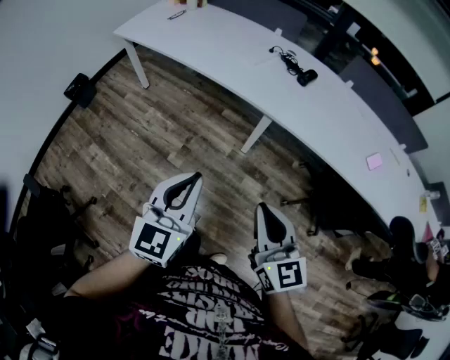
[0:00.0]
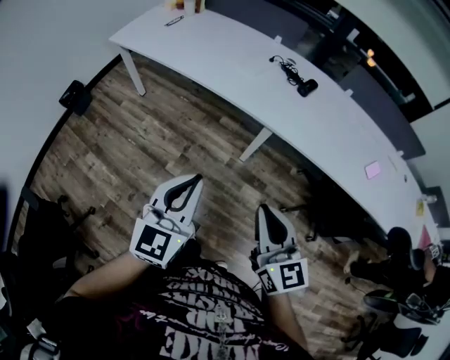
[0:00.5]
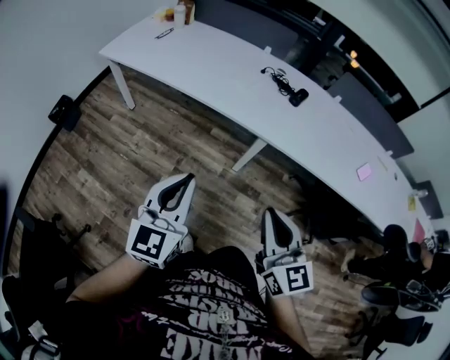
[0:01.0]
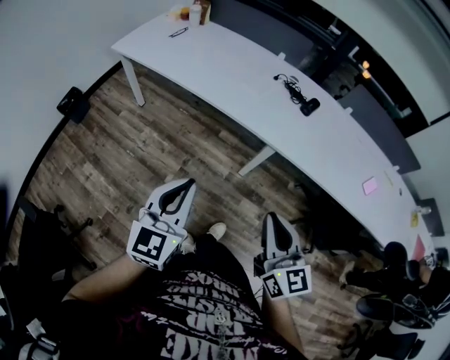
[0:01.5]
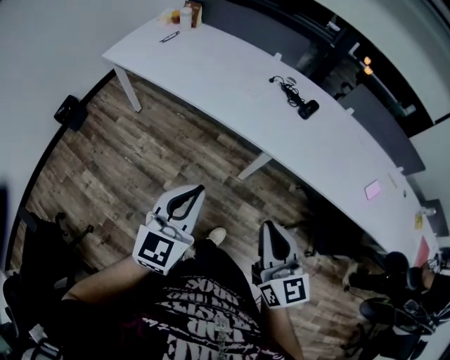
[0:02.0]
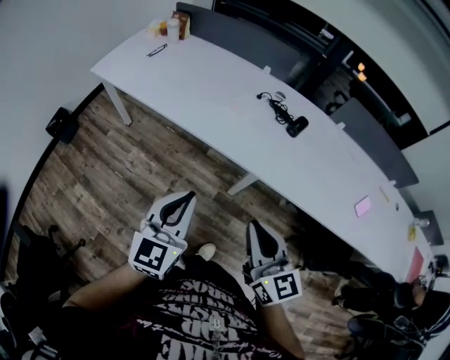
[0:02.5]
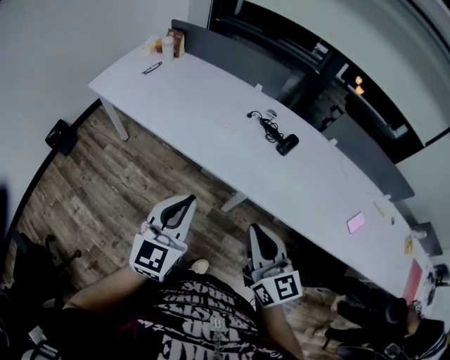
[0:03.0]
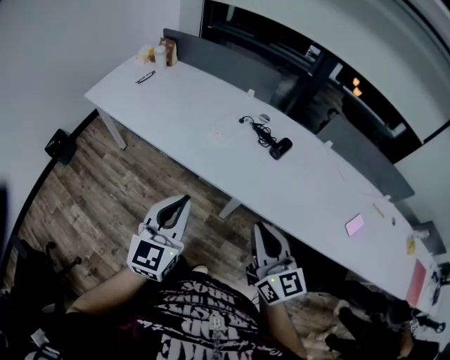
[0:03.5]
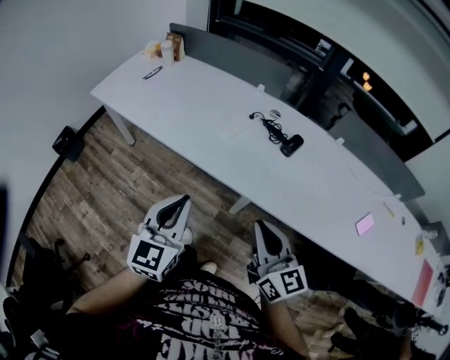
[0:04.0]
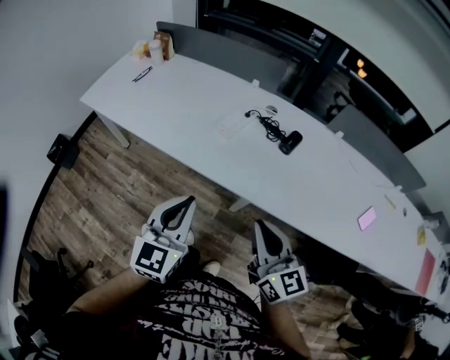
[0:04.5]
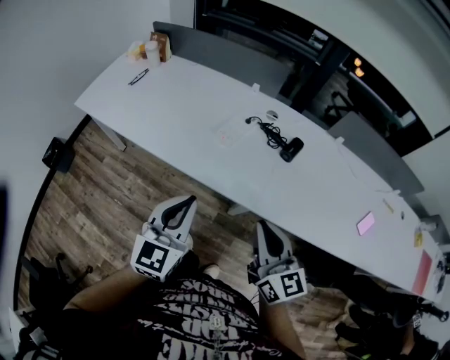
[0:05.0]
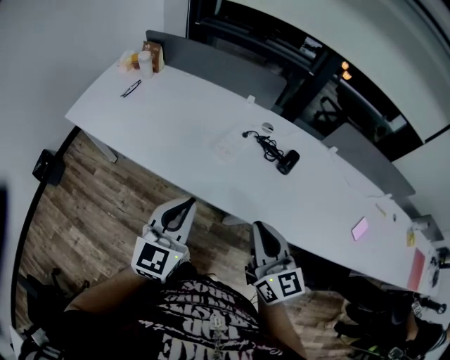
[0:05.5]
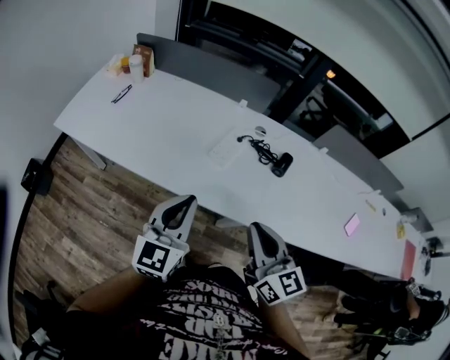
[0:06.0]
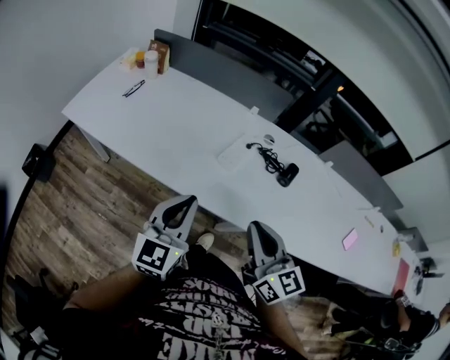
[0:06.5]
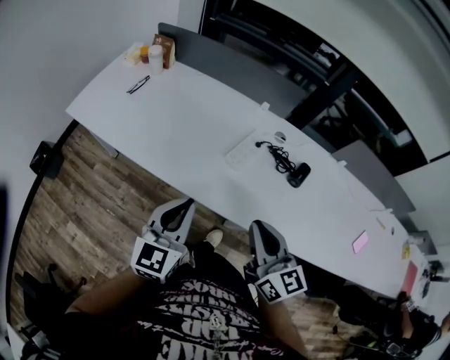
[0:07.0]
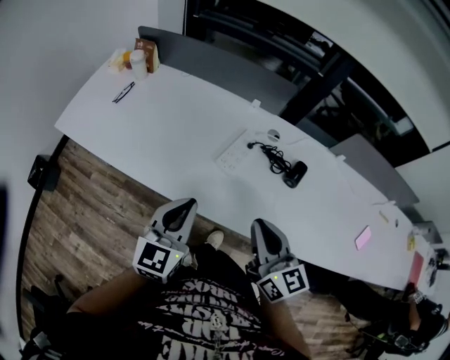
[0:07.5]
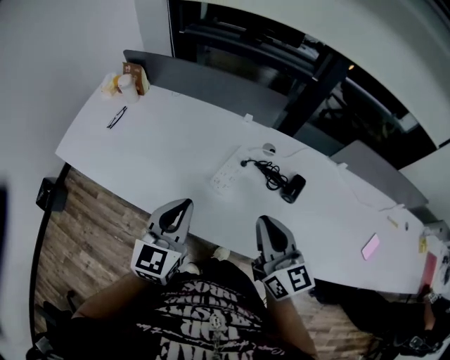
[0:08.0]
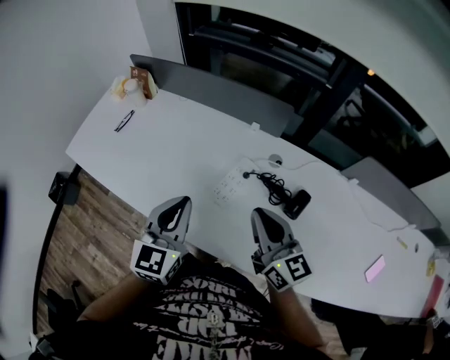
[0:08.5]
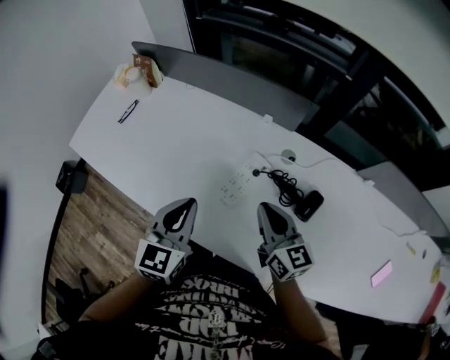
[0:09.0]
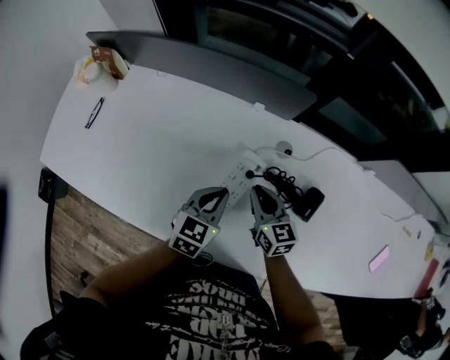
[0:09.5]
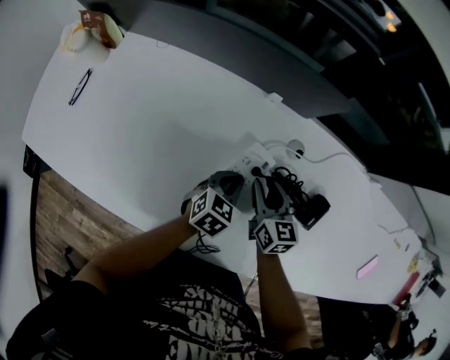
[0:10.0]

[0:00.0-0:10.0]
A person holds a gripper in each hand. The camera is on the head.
0.0 to 2.0 s: Both grippers move forward, some 15 cm.
2.0 to 4.0 s: The two grippers go roughly 15 cm forward and to the right.
4.0 to 6.0 s: The two grippers go roughly 15 cm forward and to the left.
6.0 to 8.0 s: Both grippers travel together forward, approximately 15 cm.
8.0 to 10.0 s: The right gripper heads downward and forward, covering about 35 cm, changes its angle by approximately 30 degrees, and opens up, while the left gripper travels downward, forward and to the right by about 40 cm, and angles its fingers downward, by about 30 degrees.

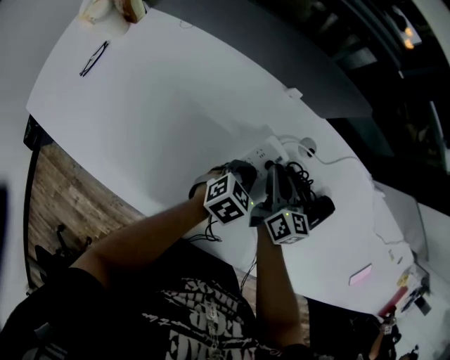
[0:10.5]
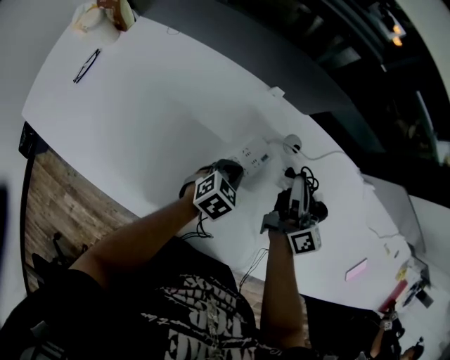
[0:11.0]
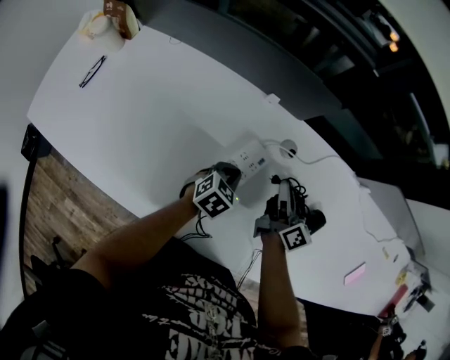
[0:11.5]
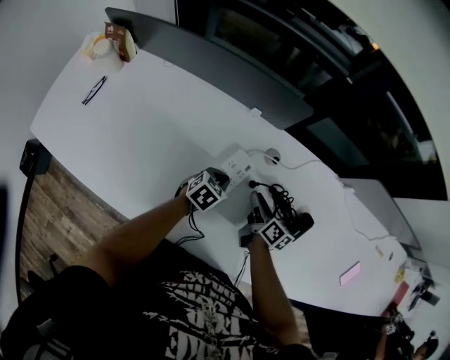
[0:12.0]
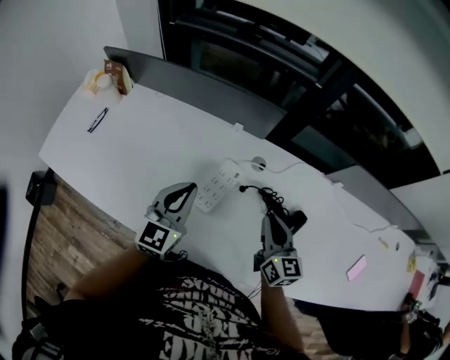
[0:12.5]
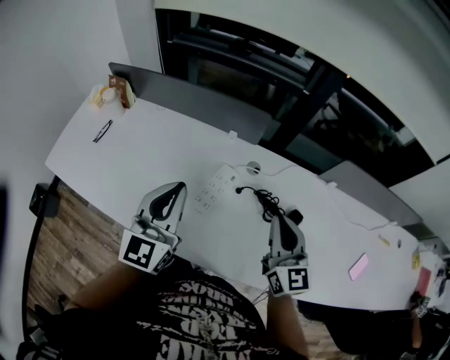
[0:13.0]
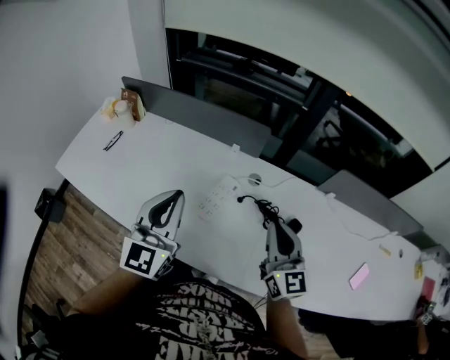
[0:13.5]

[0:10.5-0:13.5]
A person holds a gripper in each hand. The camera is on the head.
10.5 to 12.0 s: The right gripper heads to the right, covering roughly 10 cm, travels upward and back again, about 10 cm each way, and swivels some 20 degrees.
12.0 to 13.5 s: Both grippers move upward, roughly 35 cm. The right gripper twists some 50 degrees counterclockwise, seen from behind, and closes its fingers; the left gripper tips its fingers upward by some 50 degrees.

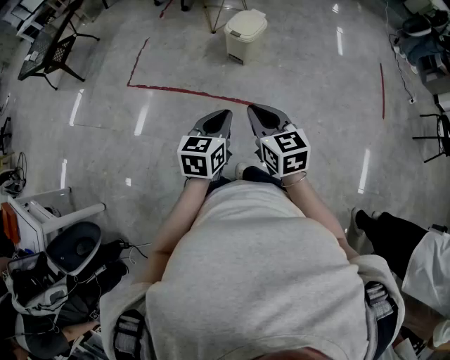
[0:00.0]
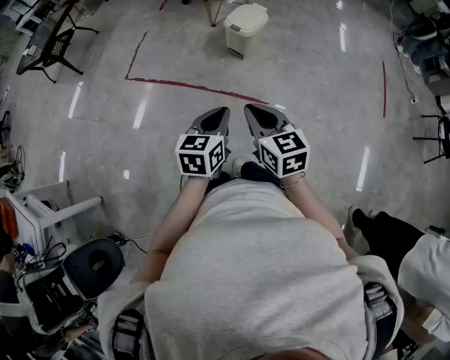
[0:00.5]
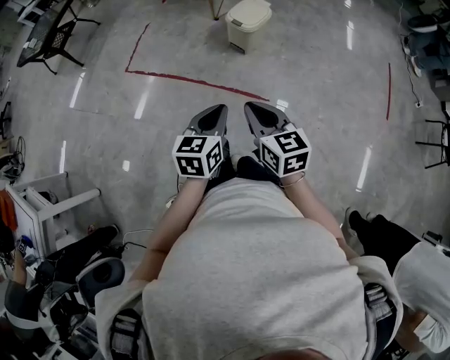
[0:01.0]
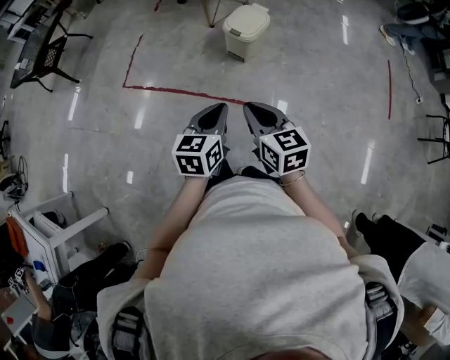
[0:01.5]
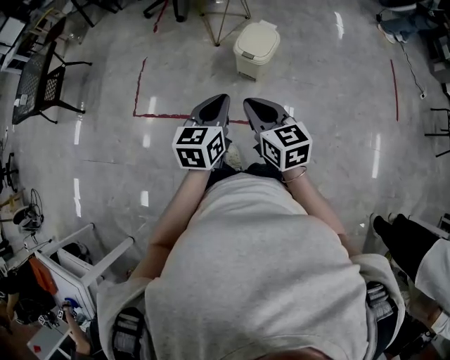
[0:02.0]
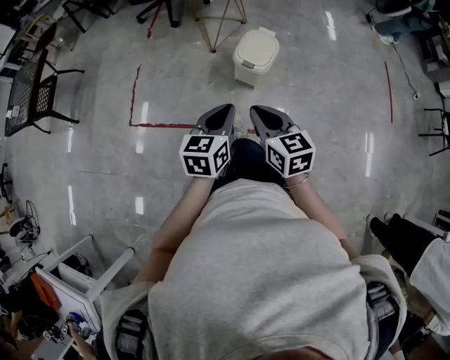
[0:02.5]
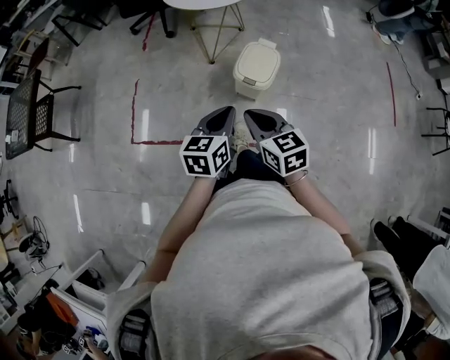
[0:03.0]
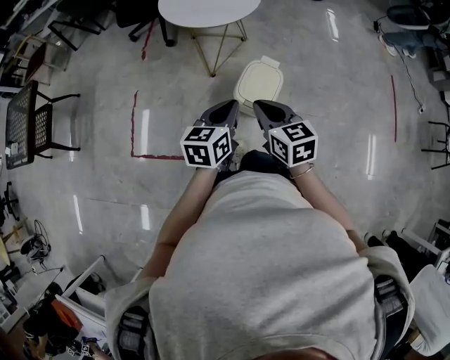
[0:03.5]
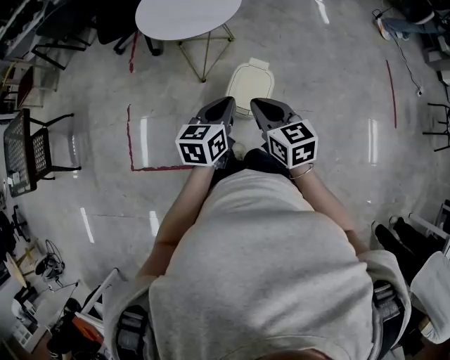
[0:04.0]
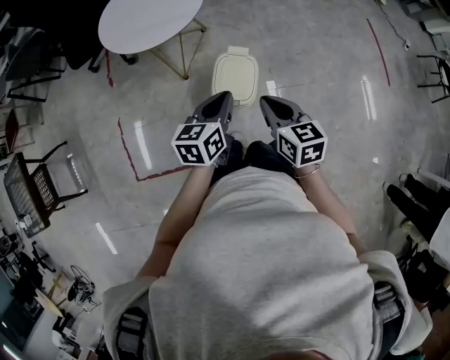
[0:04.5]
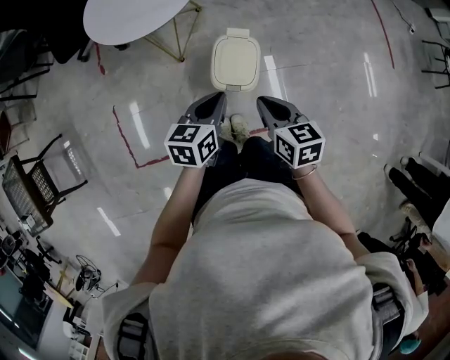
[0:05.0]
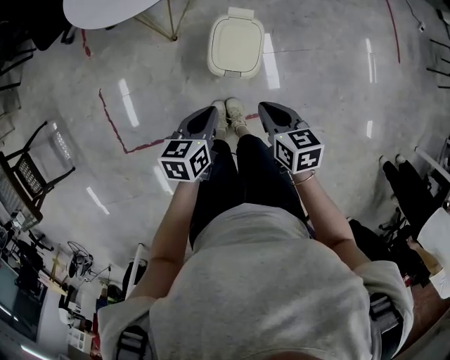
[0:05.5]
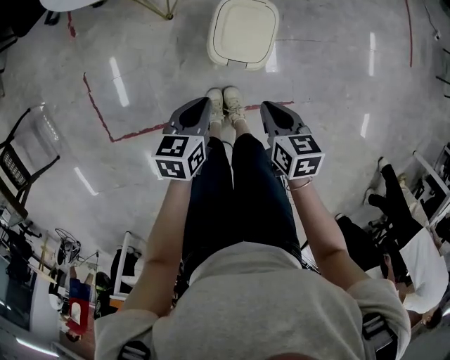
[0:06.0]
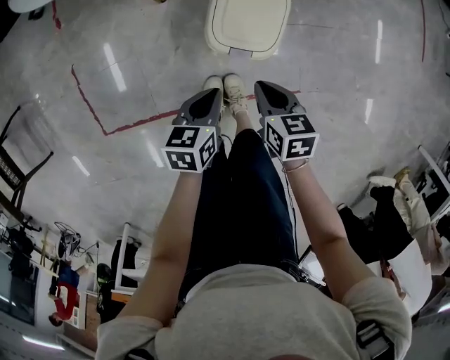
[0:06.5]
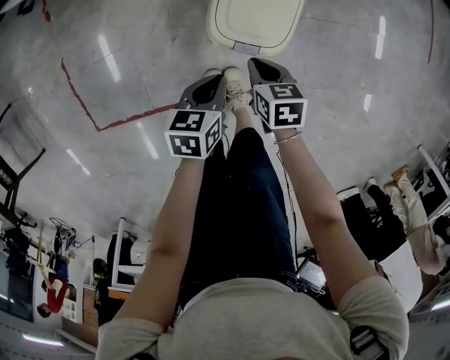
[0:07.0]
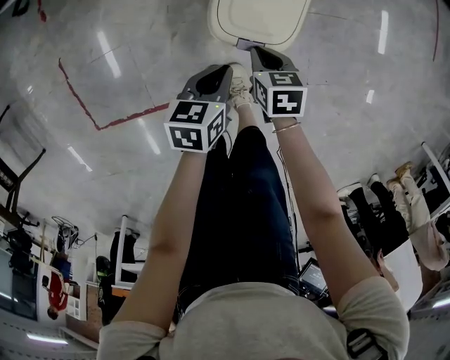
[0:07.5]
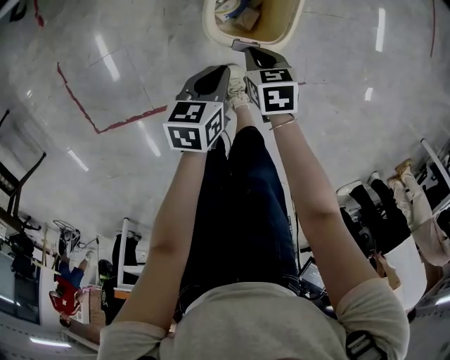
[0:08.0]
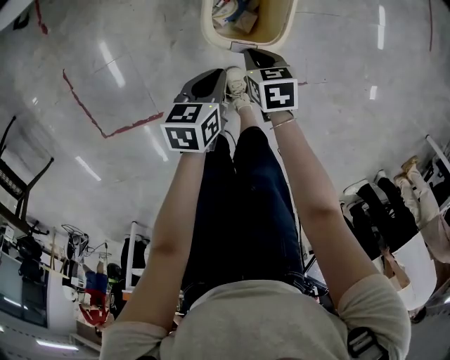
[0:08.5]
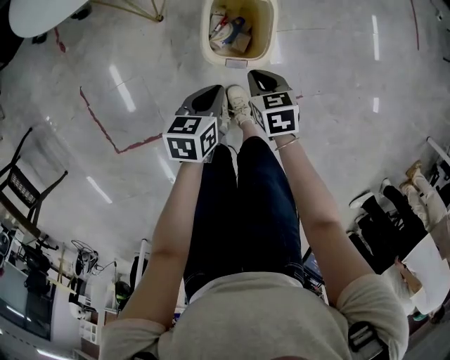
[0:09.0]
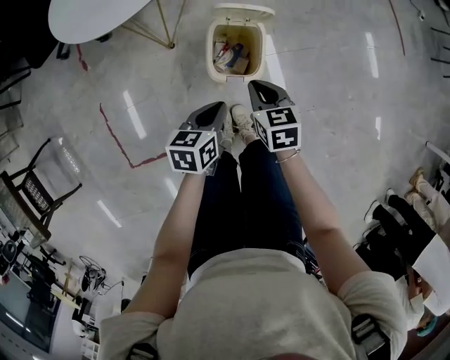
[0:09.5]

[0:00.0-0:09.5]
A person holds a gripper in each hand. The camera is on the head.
0.0 to 2.0 s: The grippers both shift forward by some 30 cm.
2.0 to 4.0 s: Both grippers travel together forward, some 35 cm.
4.0 to 5.5 s: The two grippers go about 15 cm downward. The right gripper changes its angle by some 30 degrees; the left gripper changes its angle by some 20 degrees.
5.5 to 7.5 s: Both grippers travel together downward, about 30 cm.
7.5 to 9.5 s: The grippers both shift upward by roughly 20 cm.

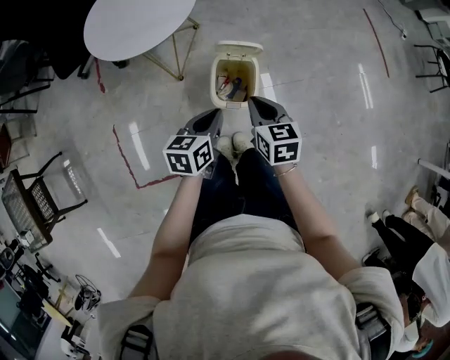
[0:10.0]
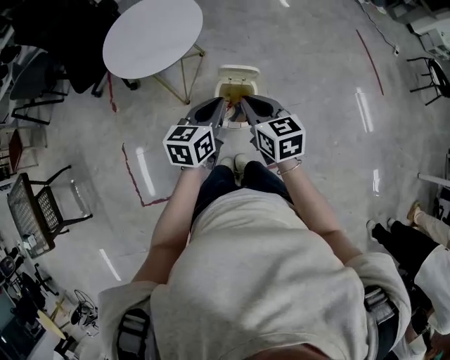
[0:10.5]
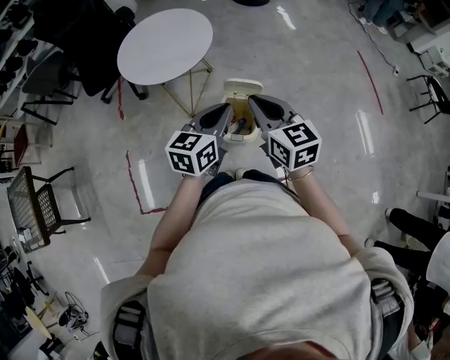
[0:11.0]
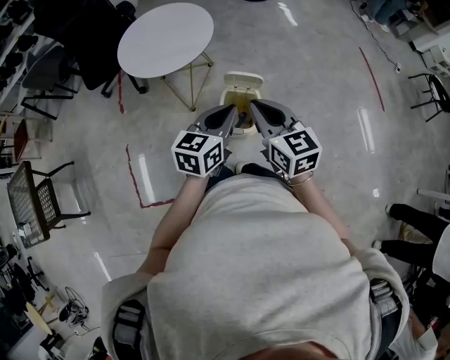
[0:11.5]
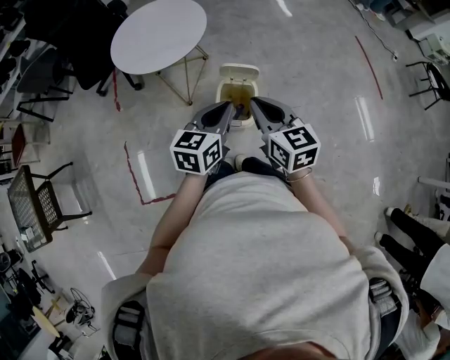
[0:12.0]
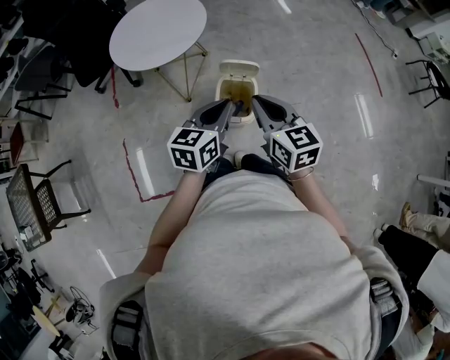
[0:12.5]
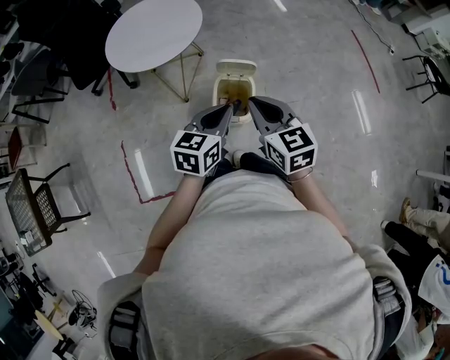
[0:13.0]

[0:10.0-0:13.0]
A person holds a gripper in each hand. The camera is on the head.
10.0 to 11.5 s: The two grippers go approximately 15 cm upward. The right gripper turns by some 20 degrees. Meanwhile the left gripper changes its angle by about 20 degrees.
11.5 to 13.0 s: The grippers move only a little.

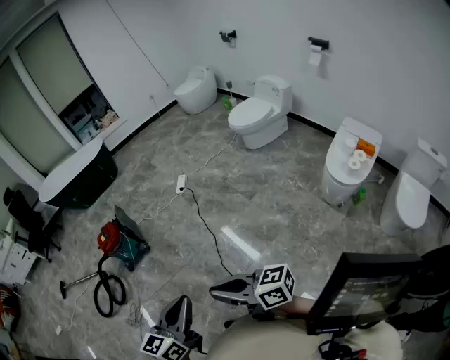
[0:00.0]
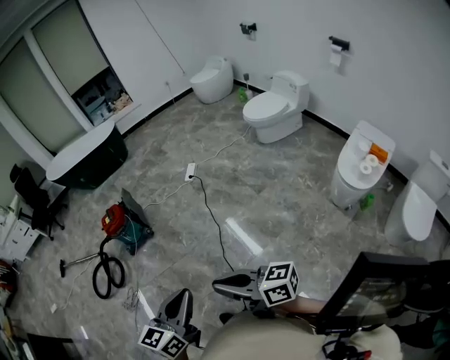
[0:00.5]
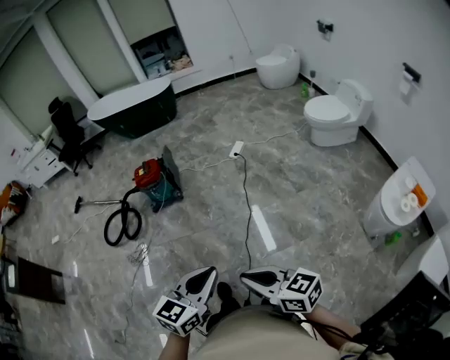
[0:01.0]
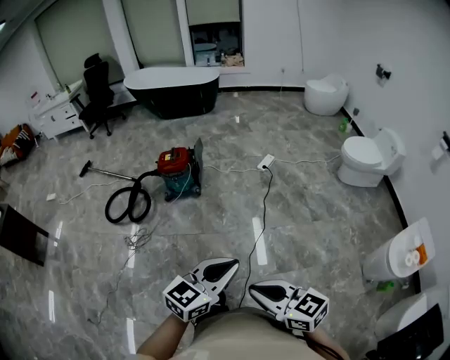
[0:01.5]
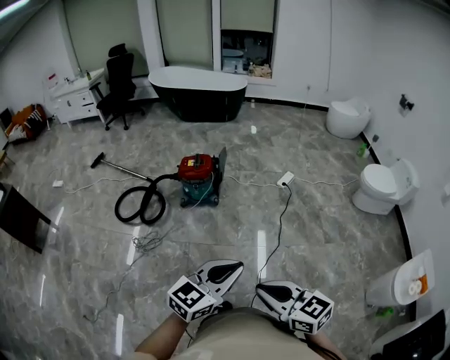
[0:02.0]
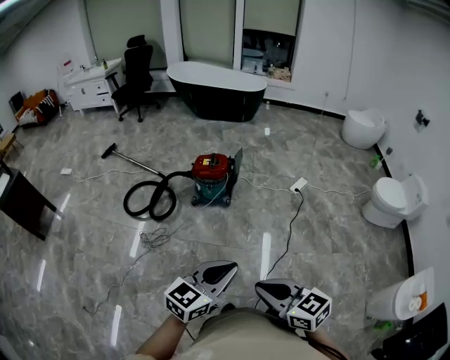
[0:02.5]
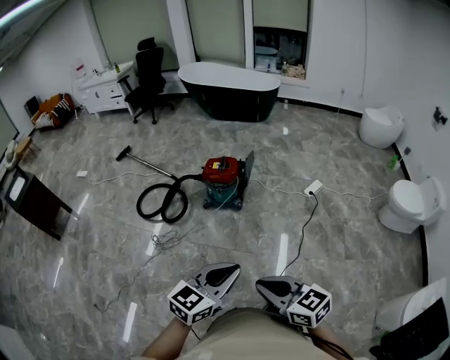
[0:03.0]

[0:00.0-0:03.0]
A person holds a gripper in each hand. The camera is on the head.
0.0 to 1.5 s: The right gripper shifts approximately 15 cm to the left, and turns by some 30 degrees; the left gripper goes roughly 15 cm forward and to the left.
1.5 to 3.0 s: The two grippers go about 20 cm forward and to the left.
